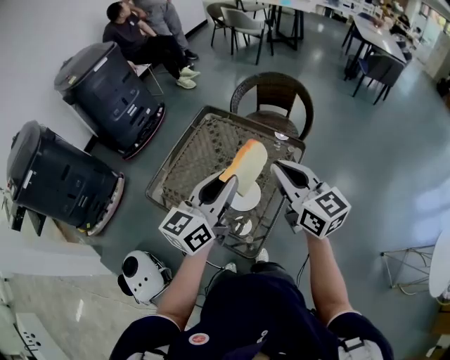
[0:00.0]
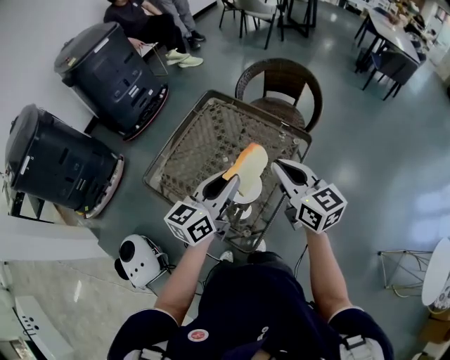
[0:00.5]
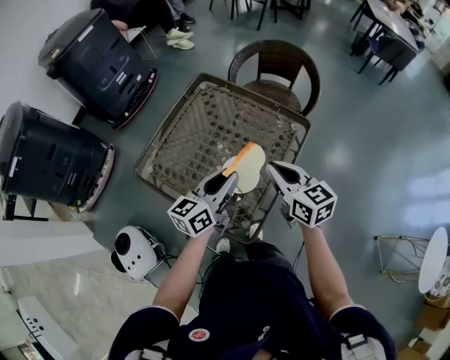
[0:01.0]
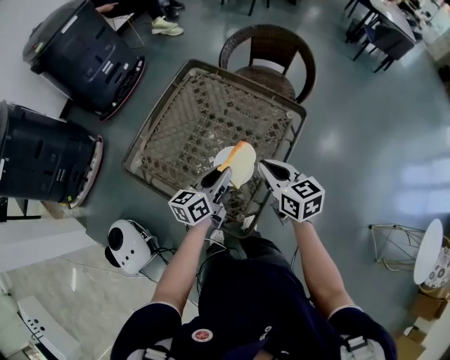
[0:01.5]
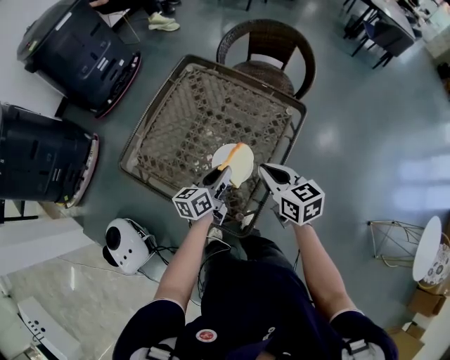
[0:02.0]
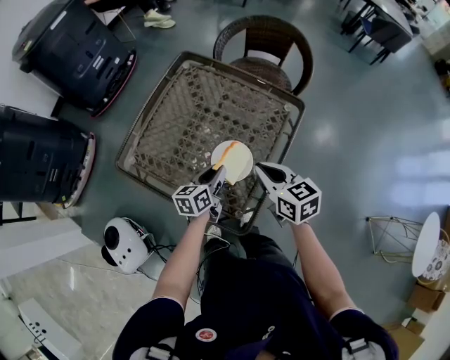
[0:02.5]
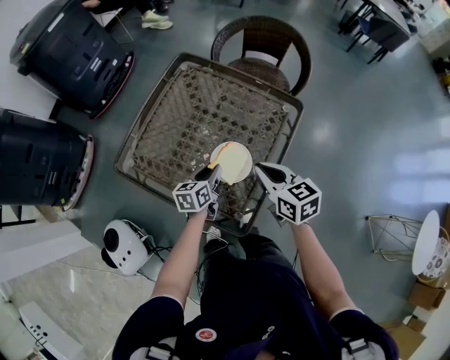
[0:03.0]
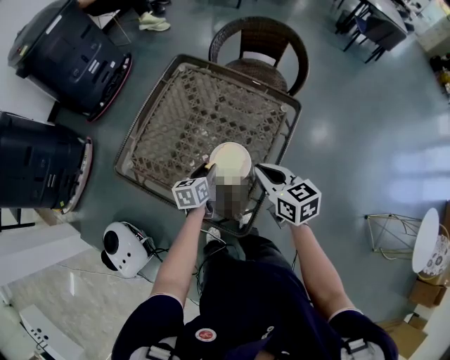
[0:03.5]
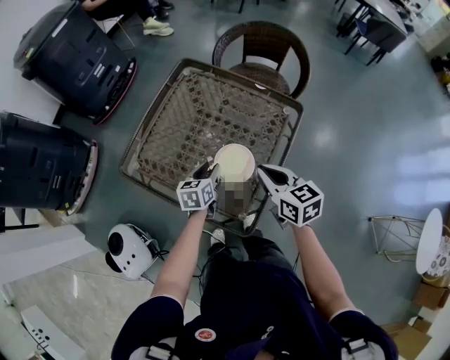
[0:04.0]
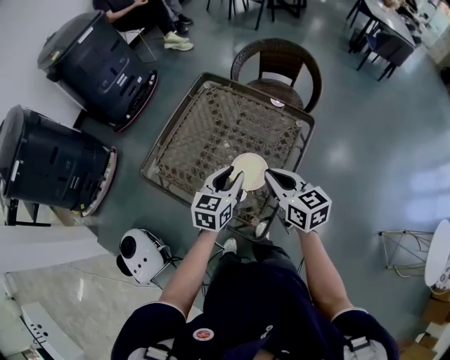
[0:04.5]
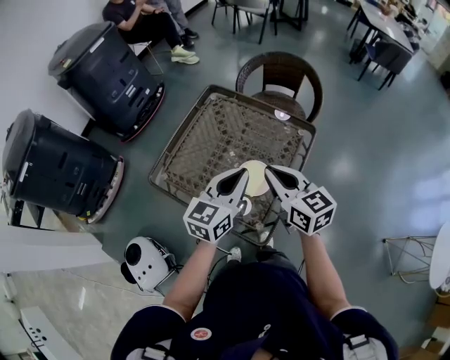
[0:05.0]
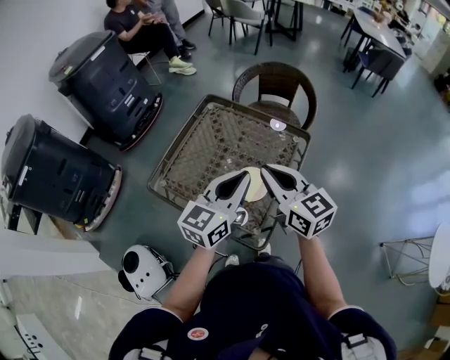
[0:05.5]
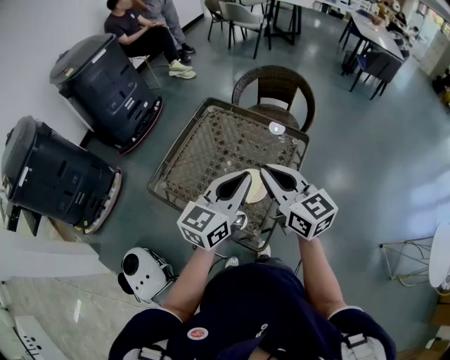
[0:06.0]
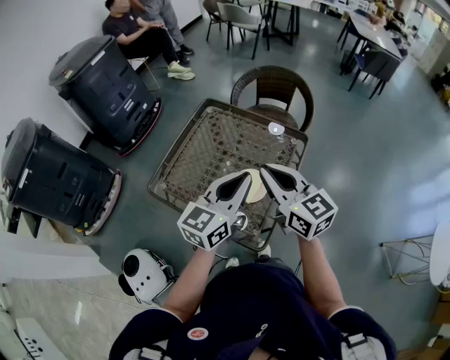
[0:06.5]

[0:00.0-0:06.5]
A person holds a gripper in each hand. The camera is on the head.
0:00.0 to 0:02.0: The grippers both shift downward by some 25 cm. The left gripper swivels approximately 30 degrees. The right gripper swivels approximately 30 degrees.
0:02.0 to 0:04.5: The right gripper heads upward, covering about 5 cm; the left gripper shifts approximately 10 cm upward, and swivels roughly 30 degrees.
0:04.5 to 0:06.5: The two grippers go some 15 cm upward. The left gripper swivels roughly 20 degrees, and closes its fingers.

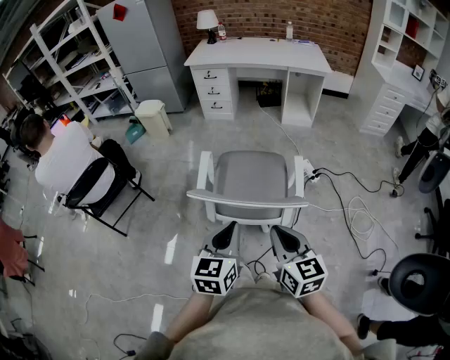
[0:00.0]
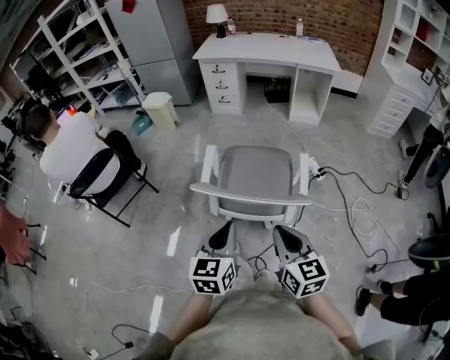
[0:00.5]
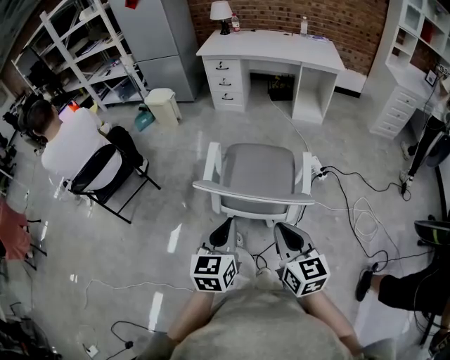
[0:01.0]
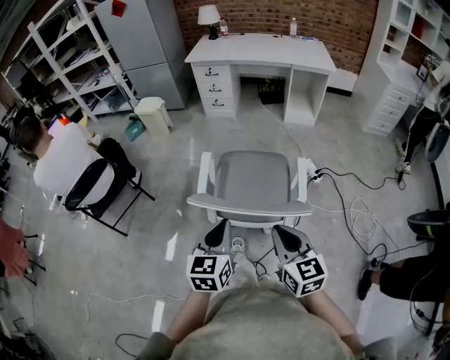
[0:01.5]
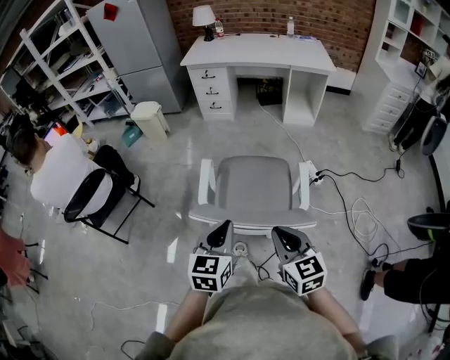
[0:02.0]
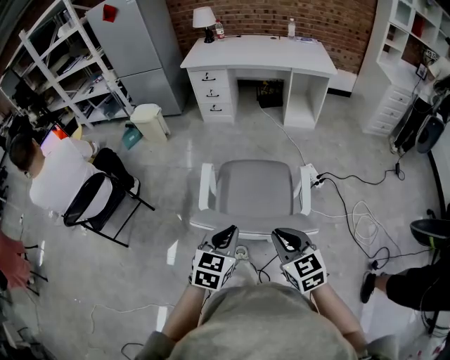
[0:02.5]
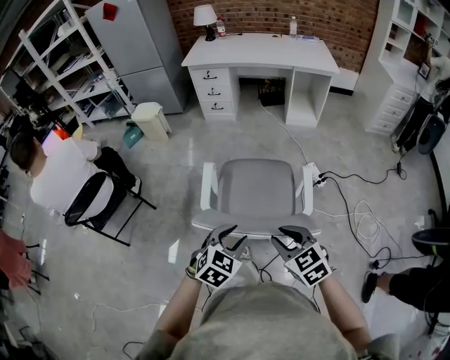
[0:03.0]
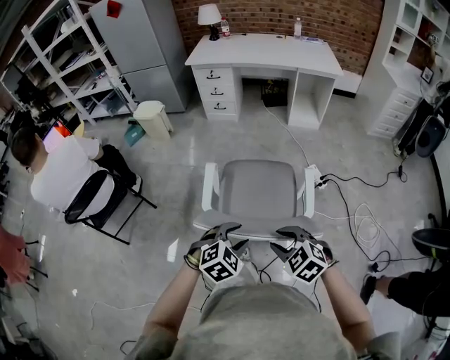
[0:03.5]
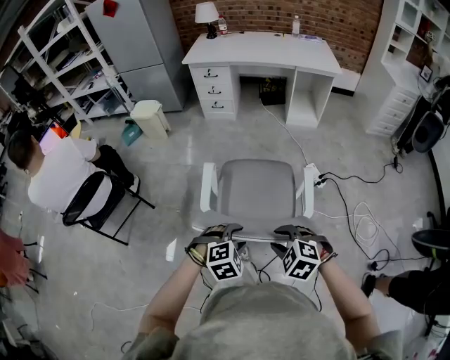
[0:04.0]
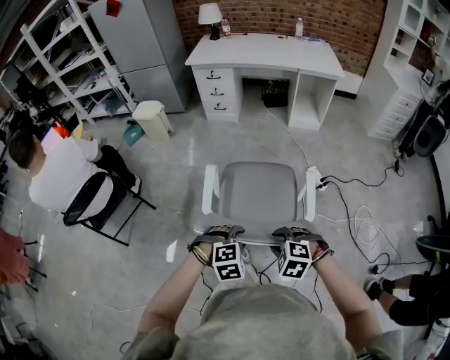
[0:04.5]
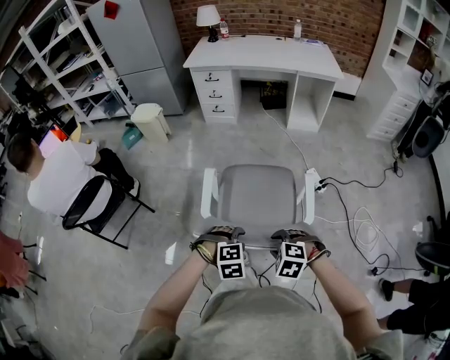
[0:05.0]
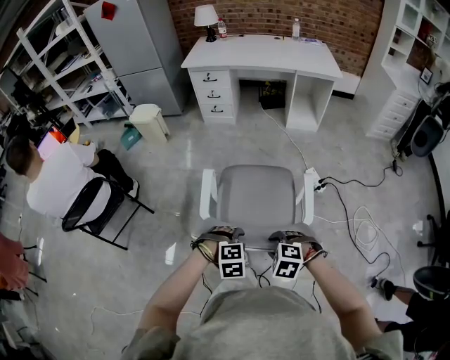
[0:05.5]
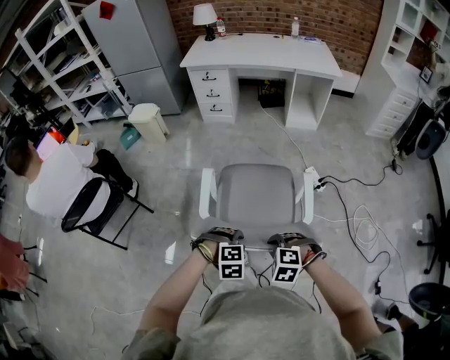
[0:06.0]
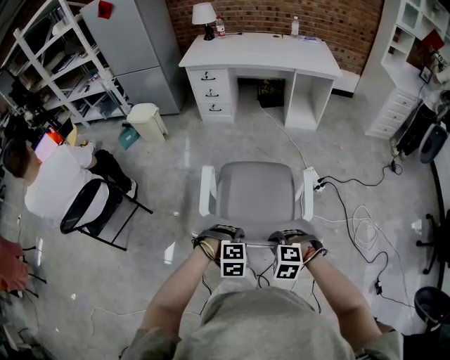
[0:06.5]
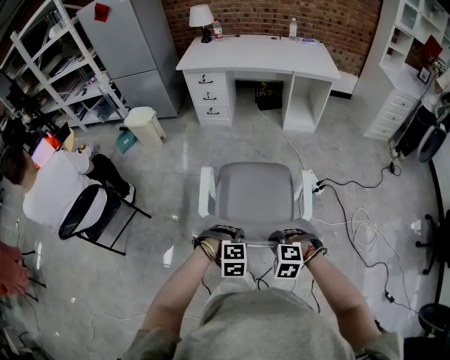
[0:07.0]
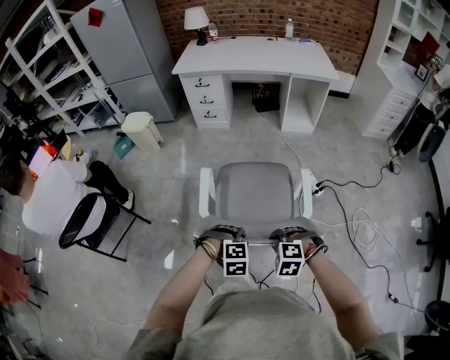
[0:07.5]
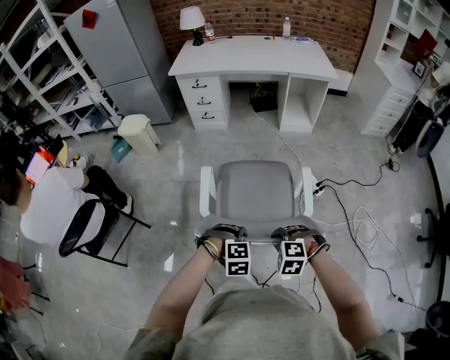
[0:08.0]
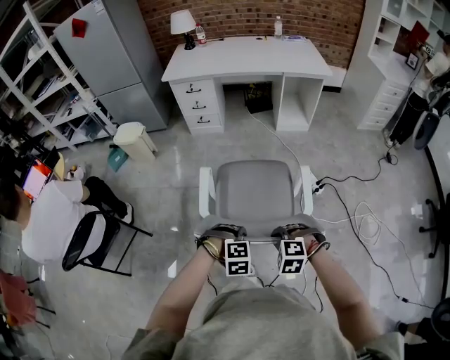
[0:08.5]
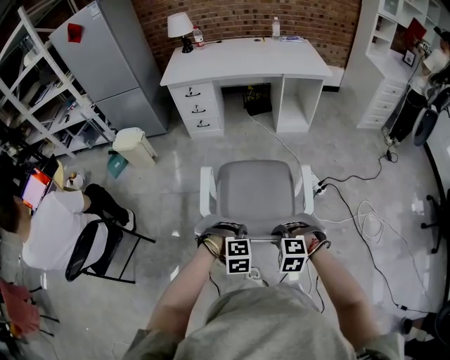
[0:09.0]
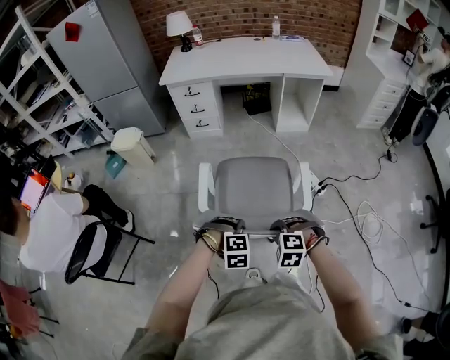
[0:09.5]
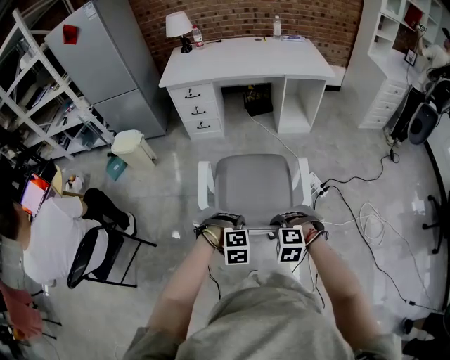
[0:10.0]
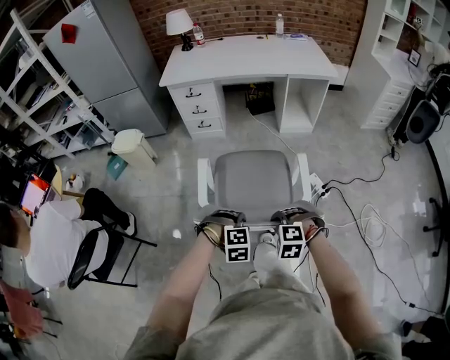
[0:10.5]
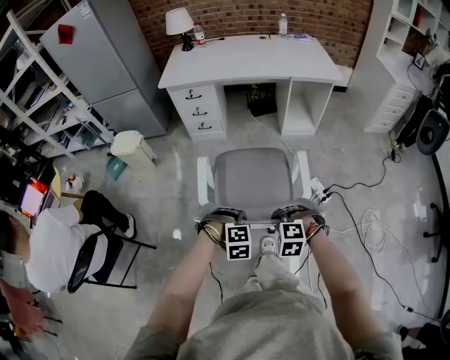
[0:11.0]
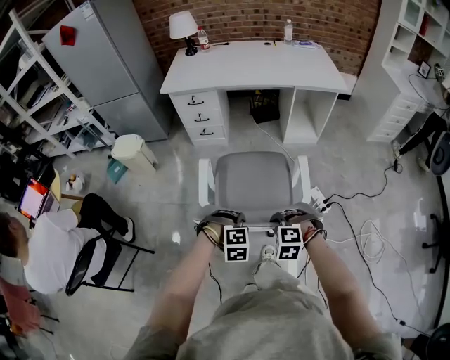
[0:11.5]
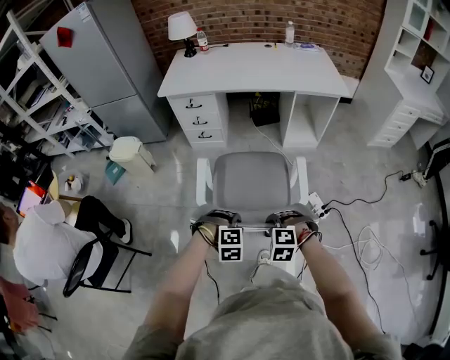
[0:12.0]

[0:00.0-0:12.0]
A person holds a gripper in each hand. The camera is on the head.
0:00.0 to 0:02.0: The grippers both shift forward by approximately 10 cm.
0:02.0 to 0:04.0: The two grippers go roughly 10 cm downward. The right gripper tips its fingers downward by about 40 degrees, and opens. Meanwhile the left gripper angles its fingers downward, by approximately 40 degrees, and opens up.
0:04.0 to 0:06.0: Both grippers travel together downward, approximately 5 cm.
0:06.0 to 0:08.0: Both grippers move forward, about 10 cm.
0:08.0 to 0:10.0: Both grippers move forward and to the left, some 15 cm.
0:10.0 to 0:12.0: The two grippers go roughly 15 cm forward.

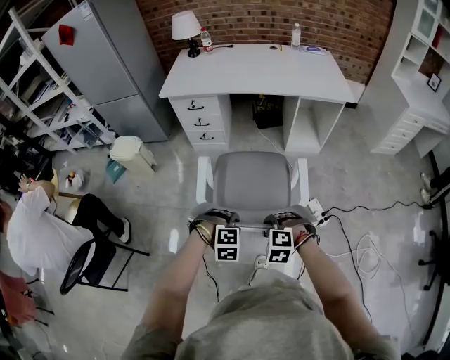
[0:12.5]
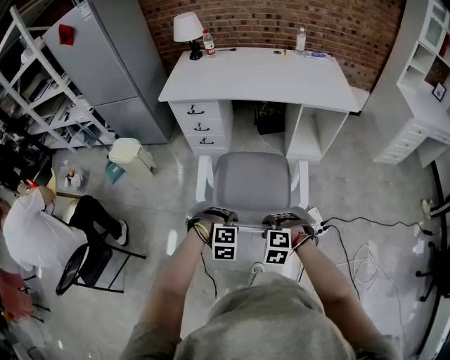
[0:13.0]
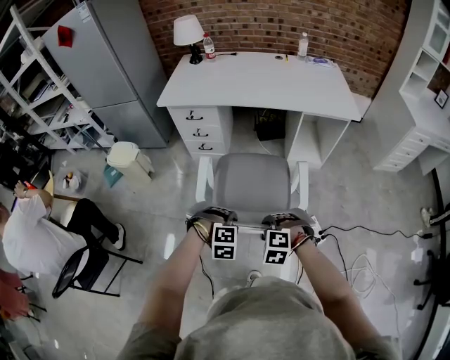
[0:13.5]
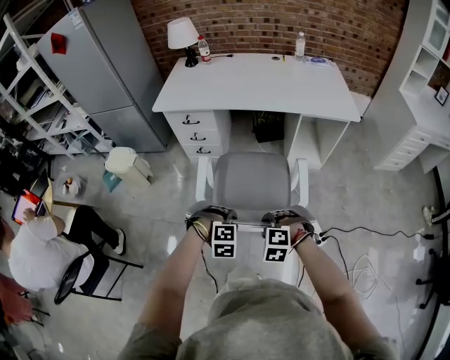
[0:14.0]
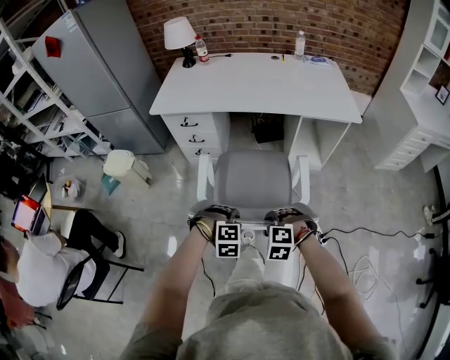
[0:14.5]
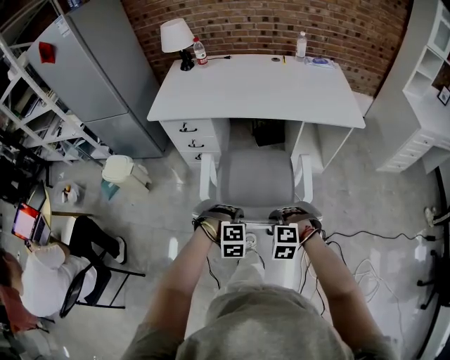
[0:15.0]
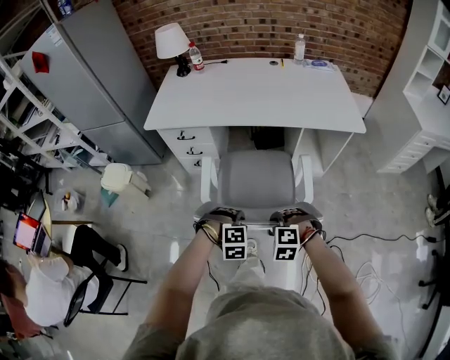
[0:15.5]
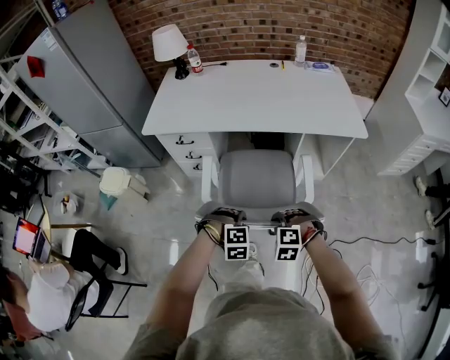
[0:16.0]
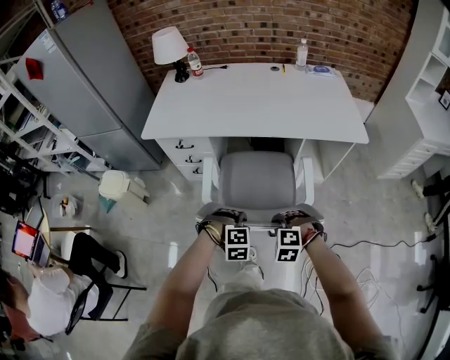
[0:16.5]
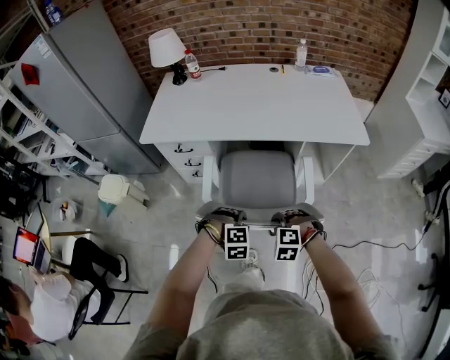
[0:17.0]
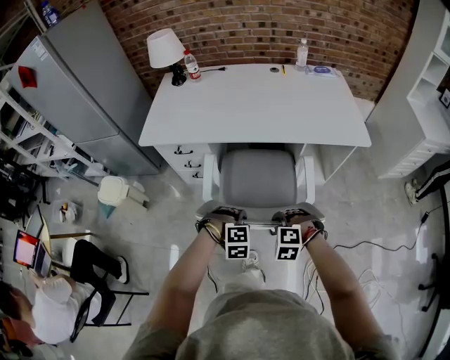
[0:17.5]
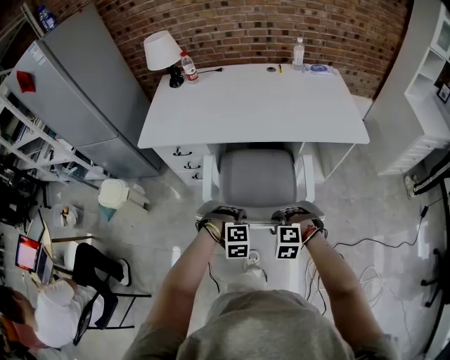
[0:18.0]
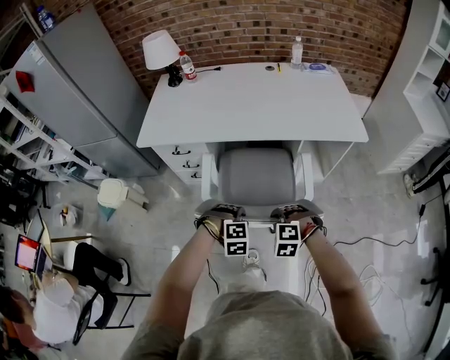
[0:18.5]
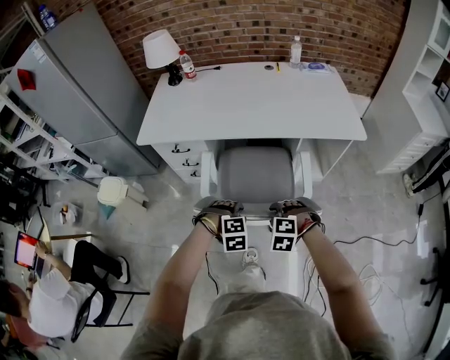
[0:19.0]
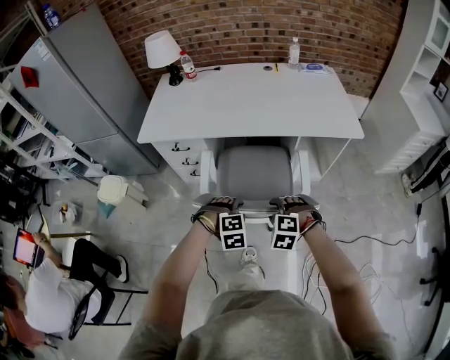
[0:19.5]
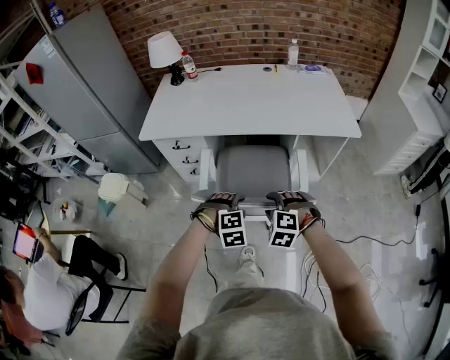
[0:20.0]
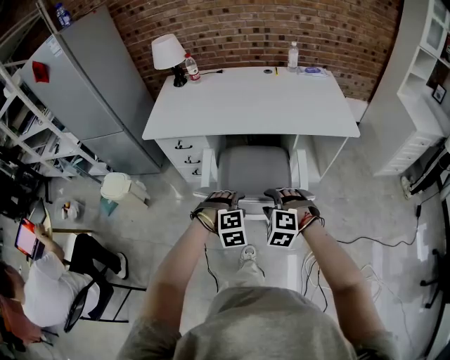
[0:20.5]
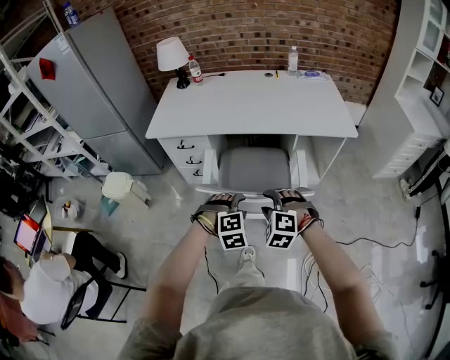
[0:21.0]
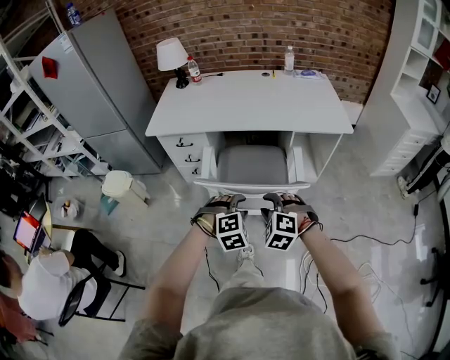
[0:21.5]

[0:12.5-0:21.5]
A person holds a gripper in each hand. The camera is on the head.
0:12.5 to 0:14.5: The two grippers go roughly 15 cm forward.
0:14.5 to 0:17.0: The two grippers go some 15 cm forward.
0:17.0 to 0:19.5: The right gripper opens its fingers; the left gripper opens.
0:19.5 to 0:21.5: Both grippers travel together backward and upward, some 10 cm.
